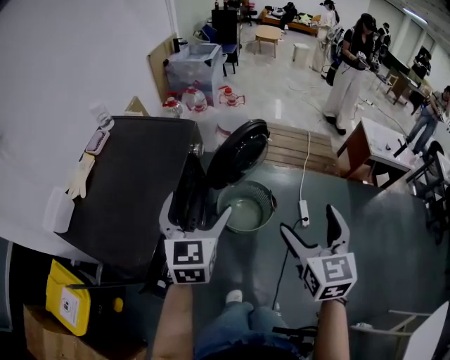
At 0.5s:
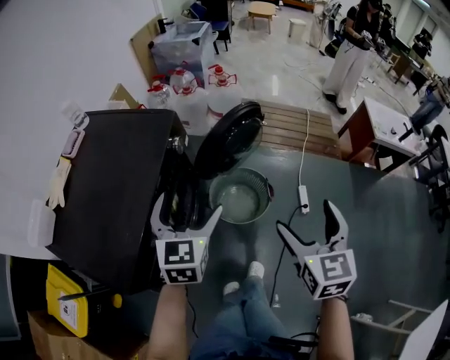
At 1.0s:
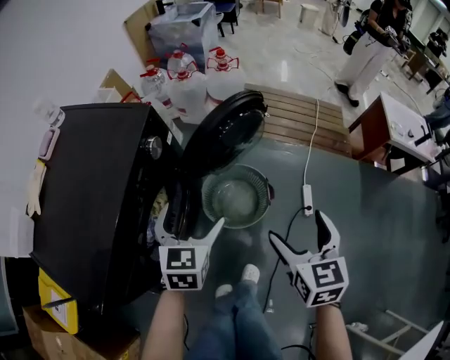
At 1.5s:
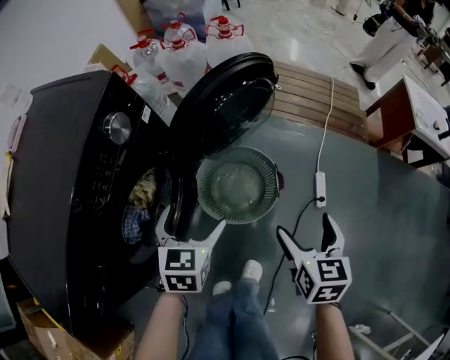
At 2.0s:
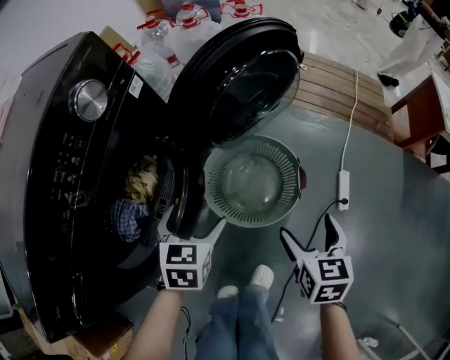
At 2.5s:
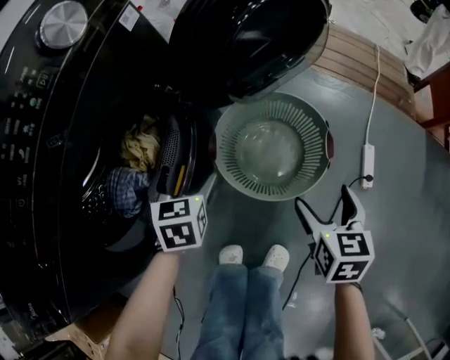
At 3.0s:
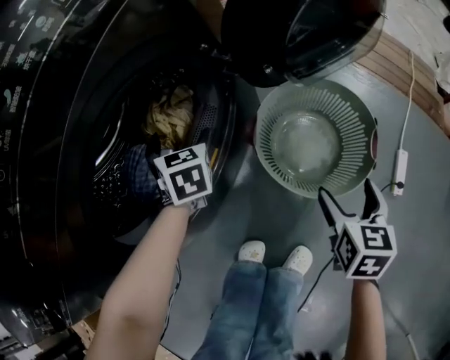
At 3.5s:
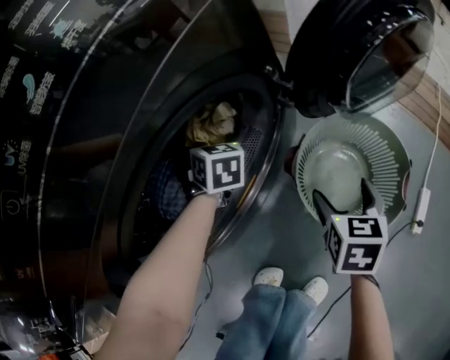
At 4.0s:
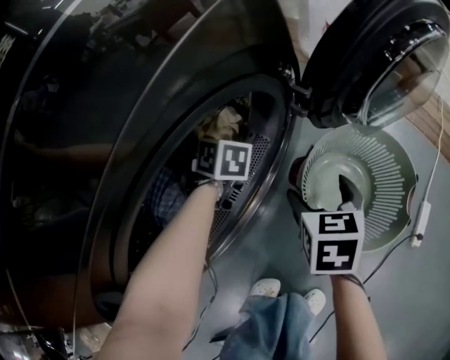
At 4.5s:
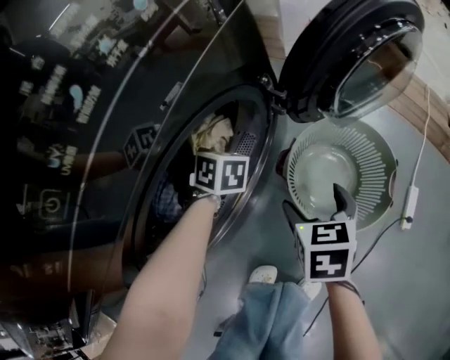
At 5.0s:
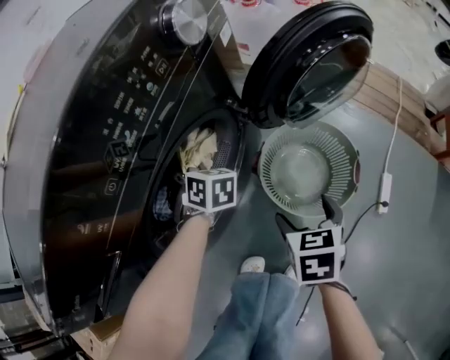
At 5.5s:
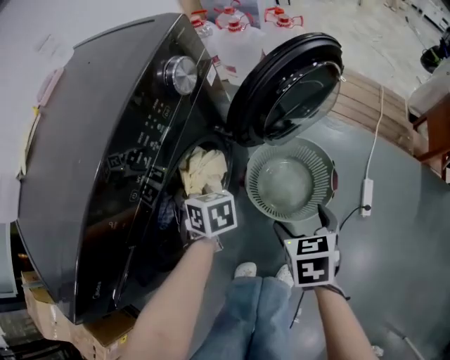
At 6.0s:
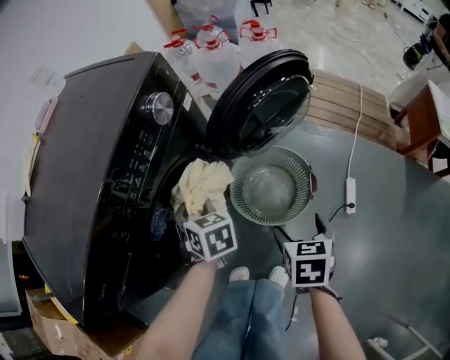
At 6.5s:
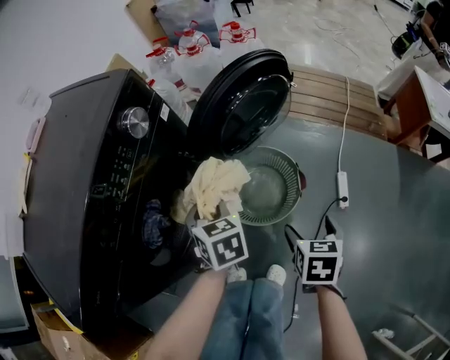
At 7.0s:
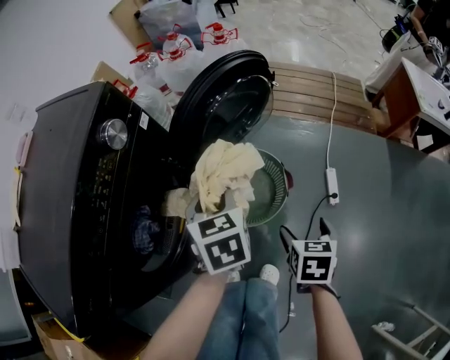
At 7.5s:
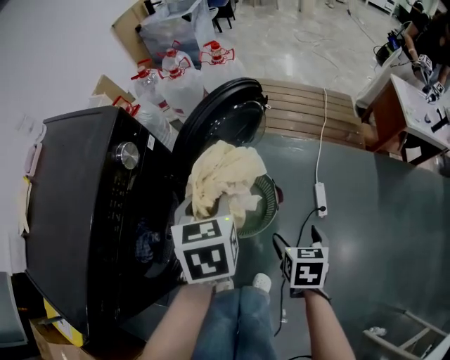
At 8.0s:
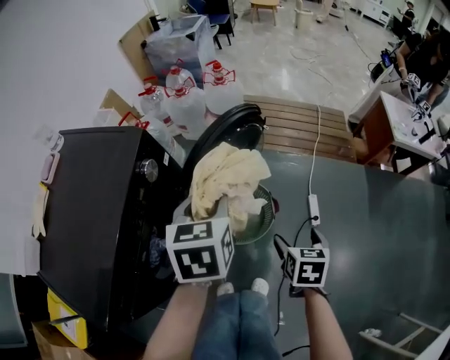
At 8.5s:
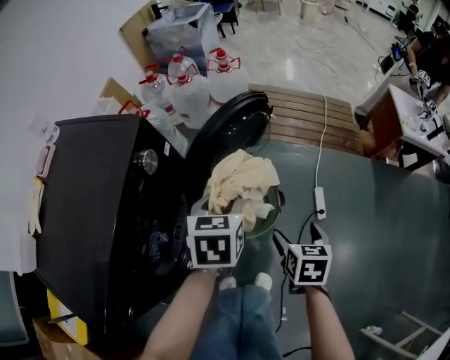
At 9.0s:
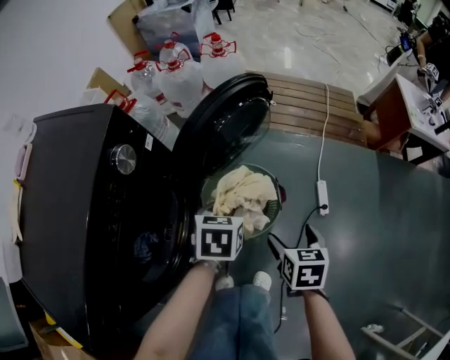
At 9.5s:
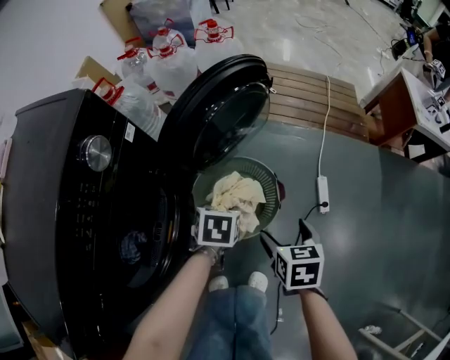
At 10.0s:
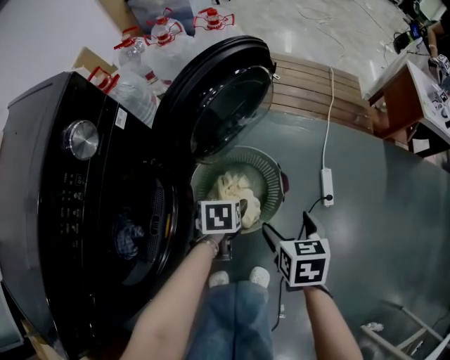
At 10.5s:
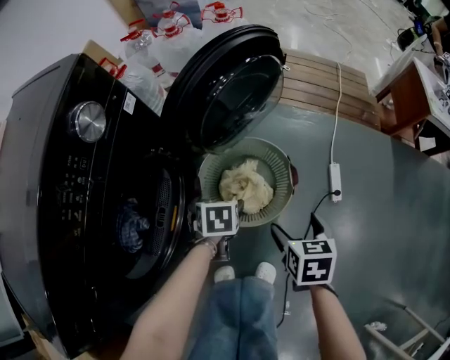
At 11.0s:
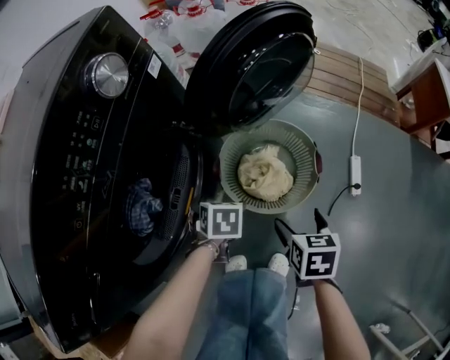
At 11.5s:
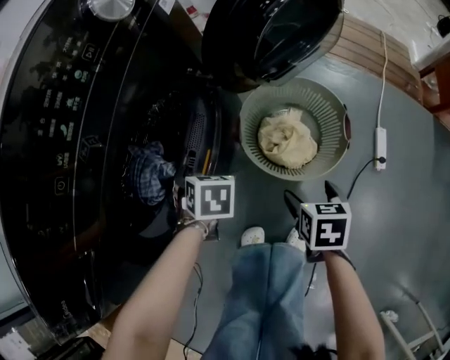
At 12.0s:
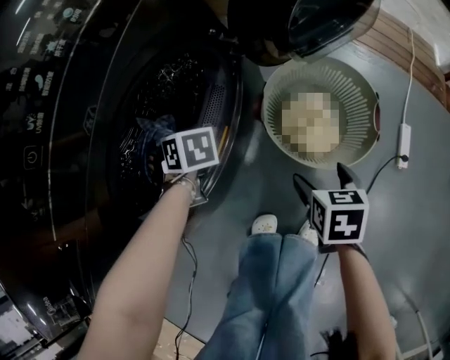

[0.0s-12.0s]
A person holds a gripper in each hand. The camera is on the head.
0.0s to 2.0s: The two grippers go roughly 50 cm downward. The right gripper rotates some 30 degrees; the left gripper tilts its fingers about 30 degrees downward.
2.0s to 4.0s: The left gripper ends up about 40 cm from where it was, turns by some 40 degrees, and closes its fingers; the right gripper moves about 35 cm.
4.0s to 6.0s: The right gripper moves backward, upward and to the right, roughly 30 cm, while the left gripper goes roughly 35 cm upward, backward and to the right.
6.0s to 8.0s: The left gripper heads upward, covering some 25 cm, and changes its angle by some 30 degrees, while the right gripper shifts roughly 10 cm upward.
8.0s to 10.0s: The right gripper heads downward, covering some 15 cm. The left gripper moves downward, roughly 40 cm, points its fingers some 30 degrees further downward, and opens up.
10.0s to 12.0s: The right gripper shifts by roughly 20 cm. Meanwhile the left gripper shifts by some 35 cm, and swivels some 40 degrees.

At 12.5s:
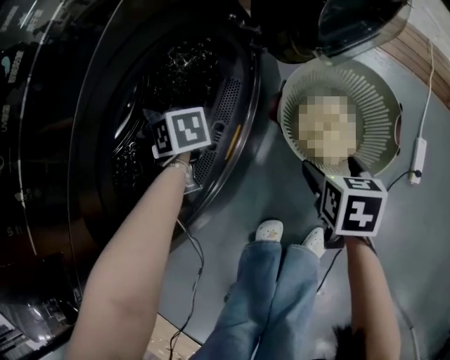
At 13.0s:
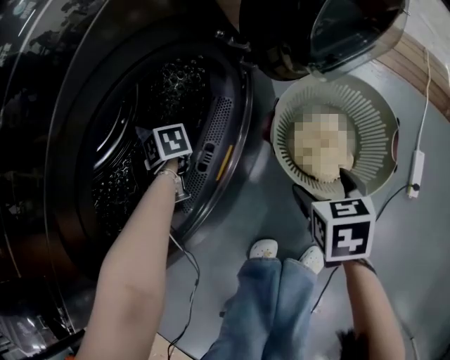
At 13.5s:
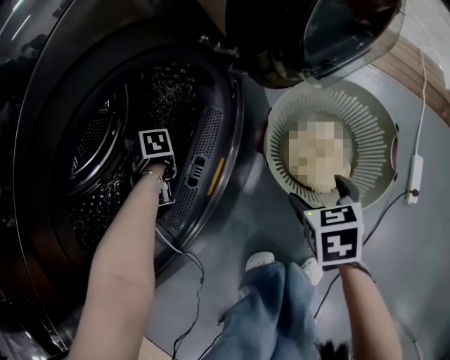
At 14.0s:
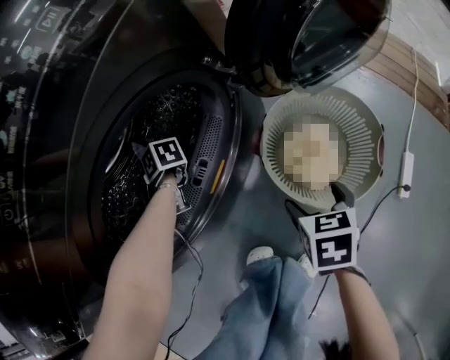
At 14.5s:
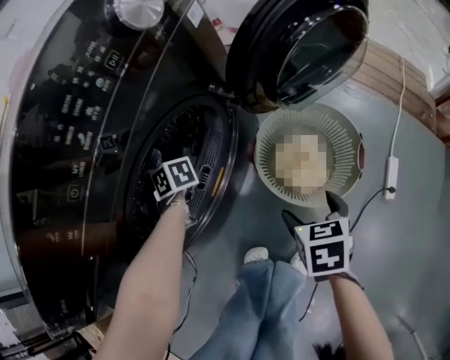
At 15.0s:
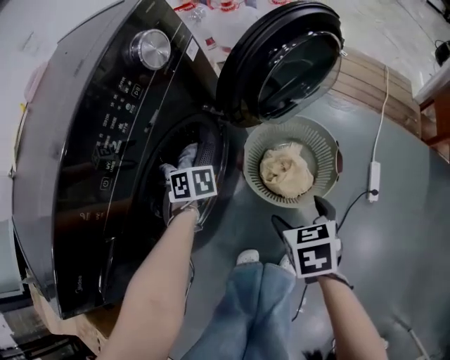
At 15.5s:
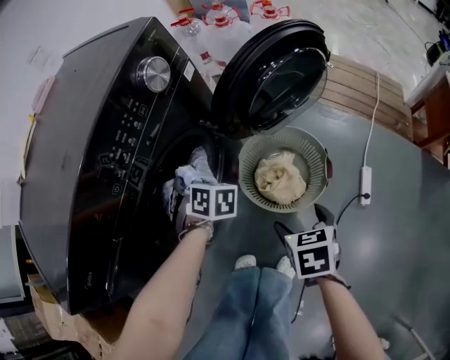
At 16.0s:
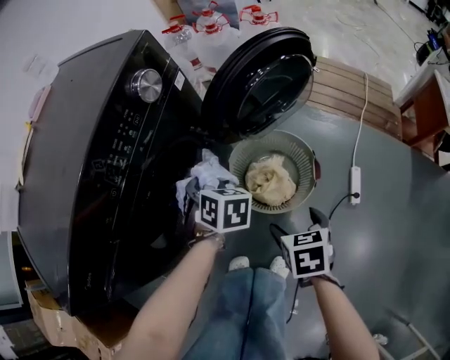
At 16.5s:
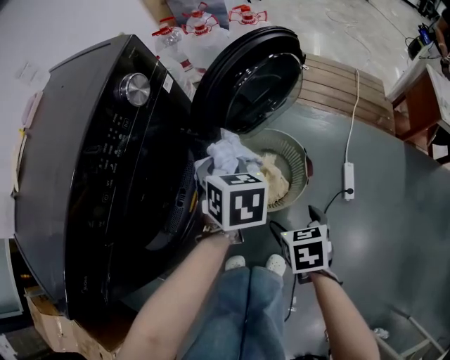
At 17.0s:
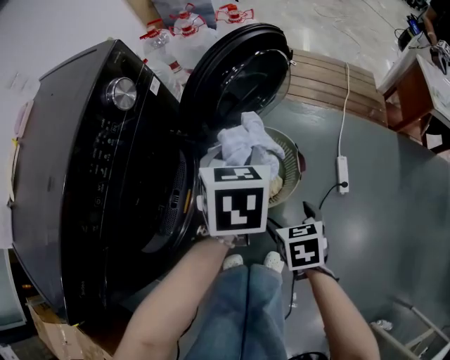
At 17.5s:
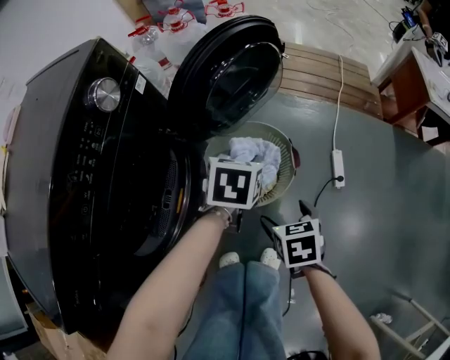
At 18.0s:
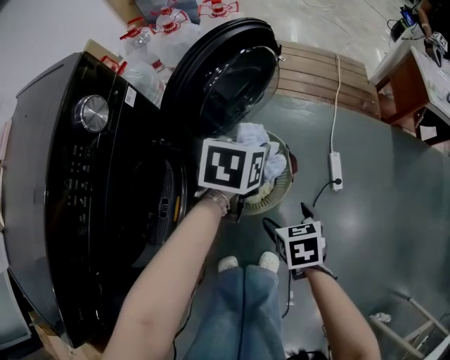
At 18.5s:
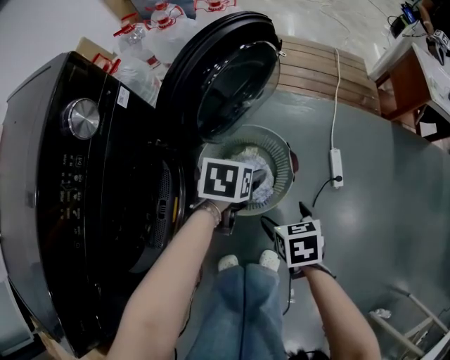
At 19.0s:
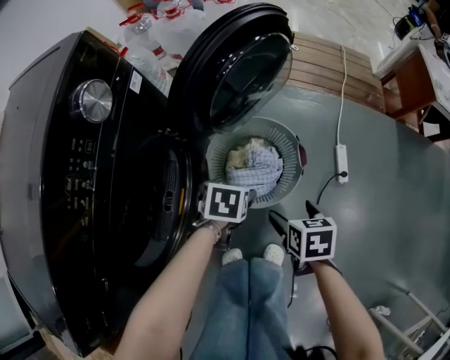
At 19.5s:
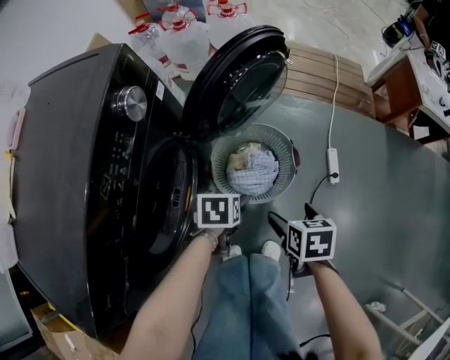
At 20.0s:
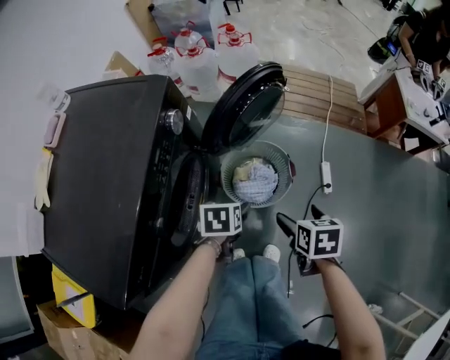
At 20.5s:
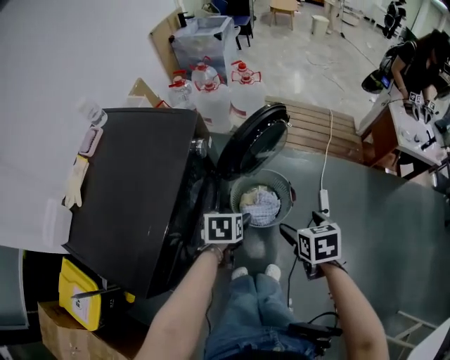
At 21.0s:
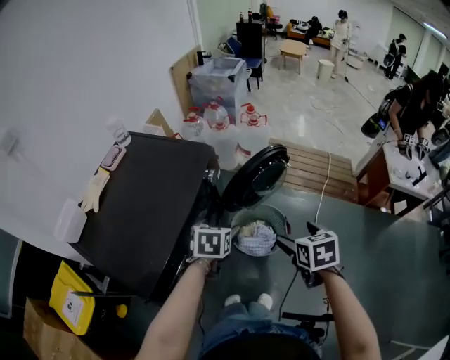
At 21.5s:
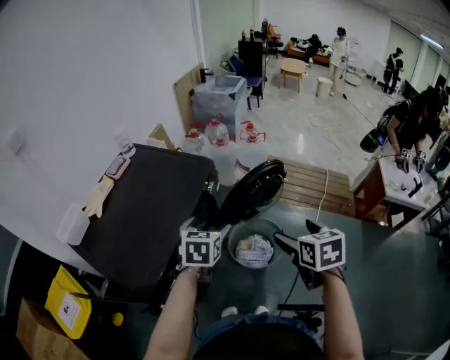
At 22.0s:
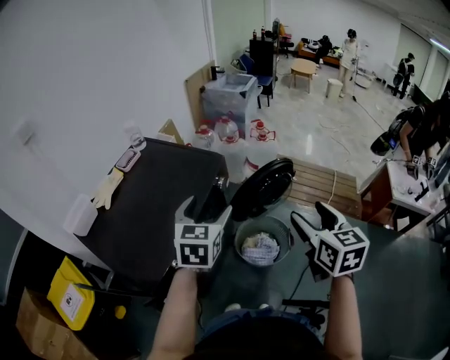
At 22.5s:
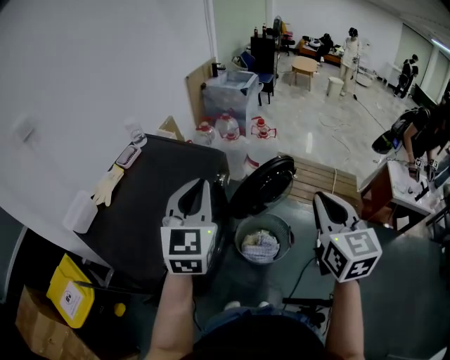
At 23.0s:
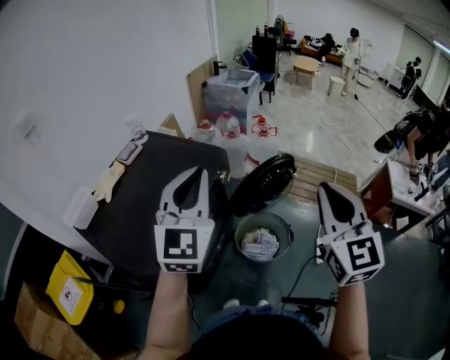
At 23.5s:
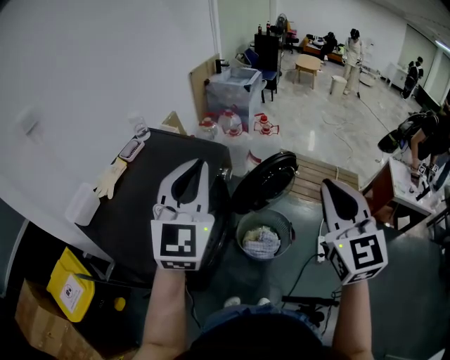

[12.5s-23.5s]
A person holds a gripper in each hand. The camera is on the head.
12.5s to 14.5s: The right gripper heads upward, covering about 5 cm; the left gripper travels downward and back again, about 10 cm each way, and closes.
14.5s to 16.0s: The left gripper ends up some 30 cm from where it was, and rotates roughly 40 degrees. The right gripper is displaced upward by some 10 cm.
16.0s to 18.0s: The left gripper reaches roughly 10 cm upward, then returns, and swivels approximately 50 degrees. The right gripper ends up some 5 cm from where it was.
18.0s to 20.0s: The right gripper is displaced upward by some 20 cm. Meanwhile the left gripper moves backward and to the left, some 20 cm, travels downward and back again, roughly 15 cm each way, swivels roughly 20 degrees, and opens its fingers.
20.0s to 21.5s: The grippers both shift upward by about 25 cm. The left gripper rotates approximately 30 degrees, while the right gripper turns by about 30 degrees.
21.5s to 23.5s: The grippers both shift upward by about 25 cm. The right gripper angles its fingers upward, by about 40 degrees, and closes its fingers; the left gripper angles its fingers upward, by about 40 degrees, and closes up.

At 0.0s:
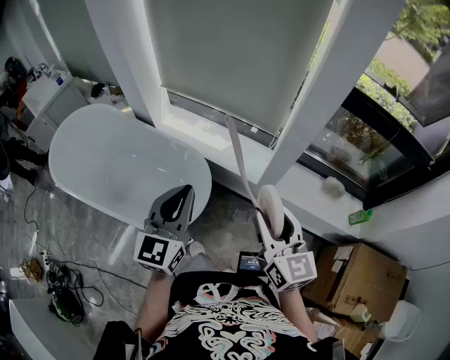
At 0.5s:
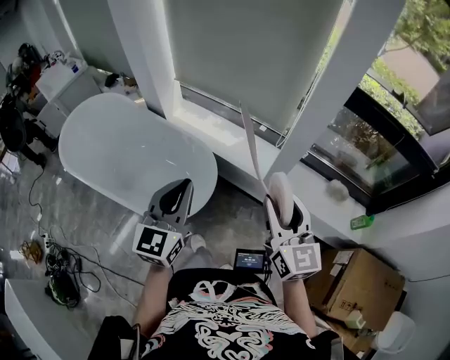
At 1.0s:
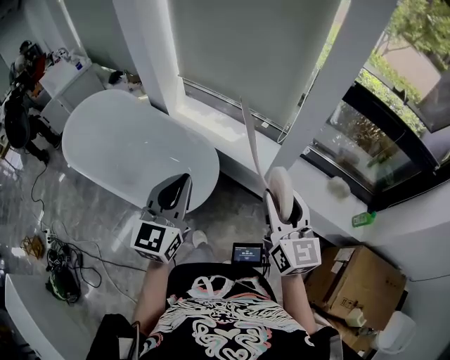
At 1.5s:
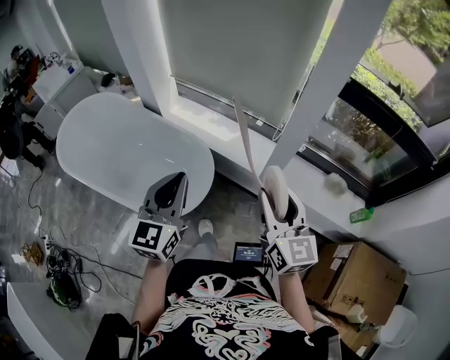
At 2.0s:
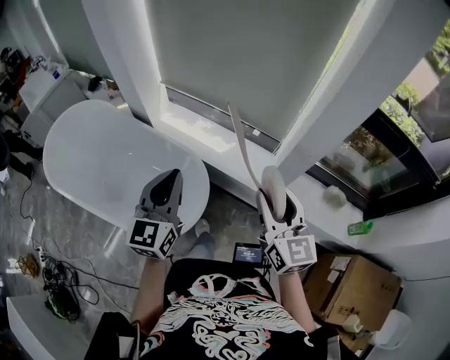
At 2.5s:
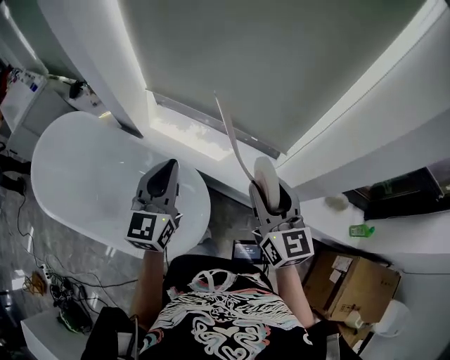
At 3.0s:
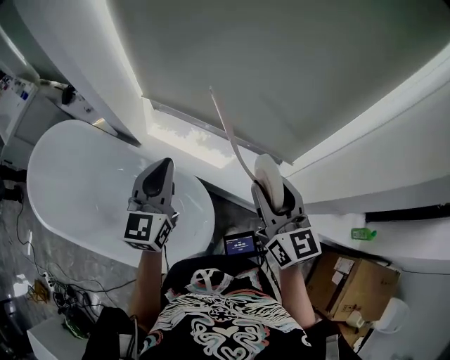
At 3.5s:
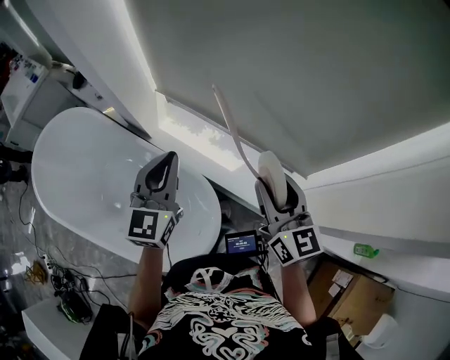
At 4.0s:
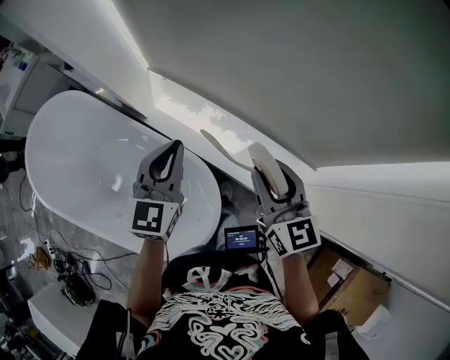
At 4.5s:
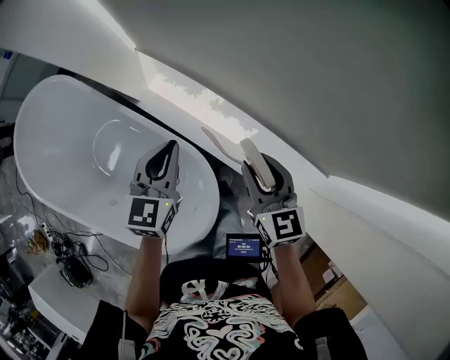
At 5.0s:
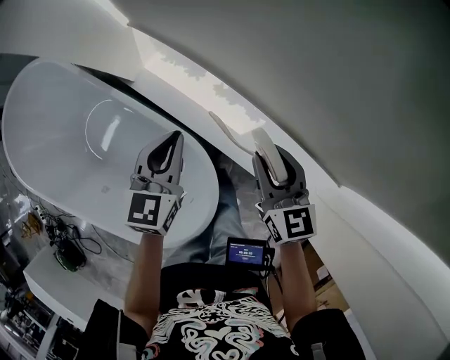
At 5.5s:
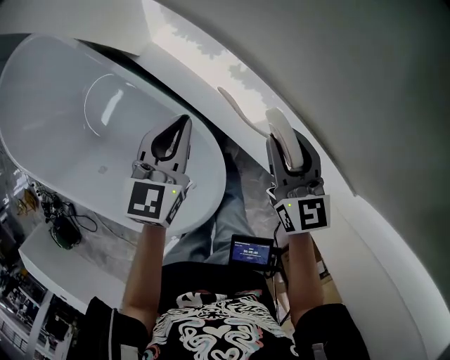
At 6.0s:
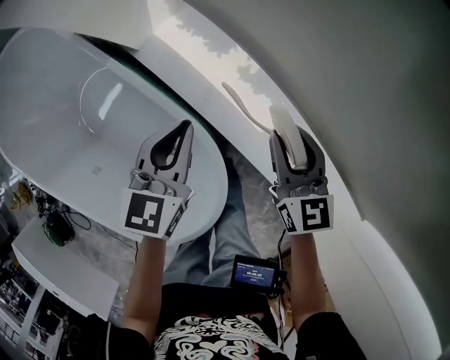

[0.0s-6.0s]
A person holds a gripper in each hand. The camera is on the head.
0.0s to 2.0s: Both grippers travel together forward, approximately 10 cm.
2.0s to 4.0s: The two grippers go approximately 35 cm forward.
4.0s to 6.0s: The left gripper is displaced downward by about 30 cm, and swivels about 20 degrees; the right gripper moves downward and forward, about 35 cm.
